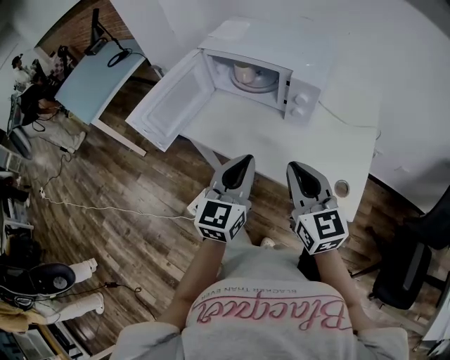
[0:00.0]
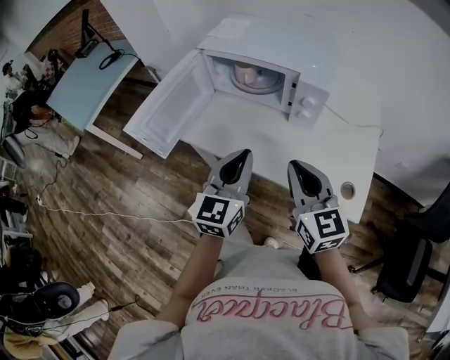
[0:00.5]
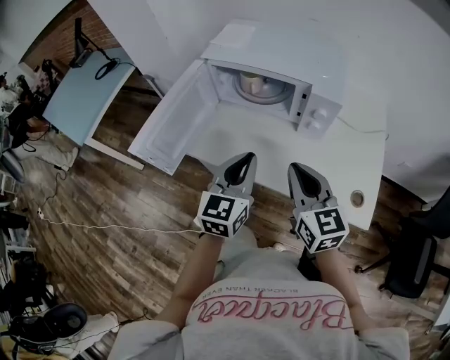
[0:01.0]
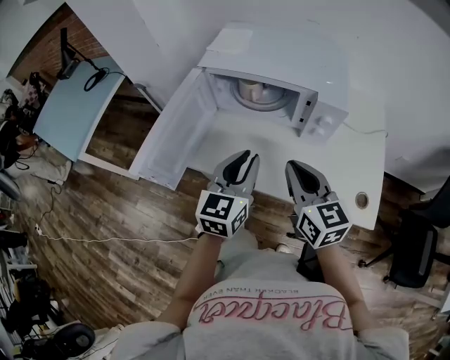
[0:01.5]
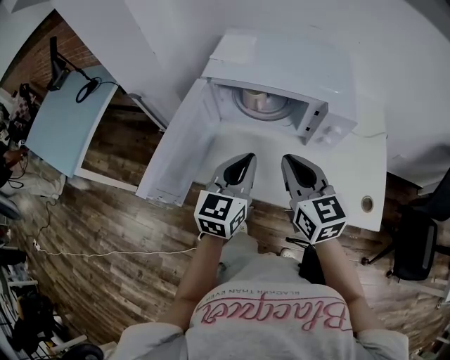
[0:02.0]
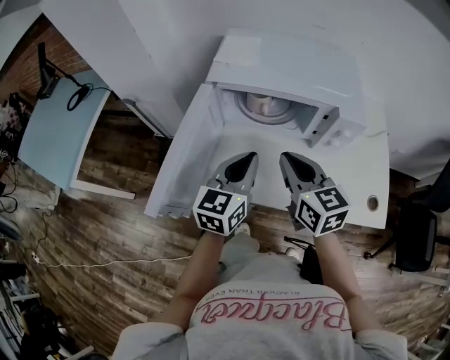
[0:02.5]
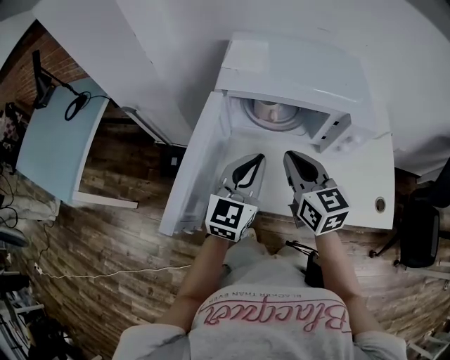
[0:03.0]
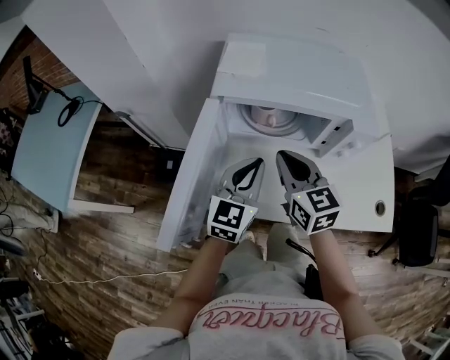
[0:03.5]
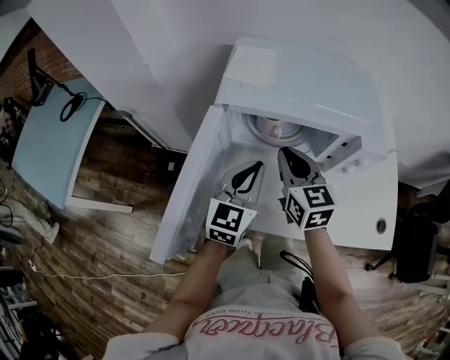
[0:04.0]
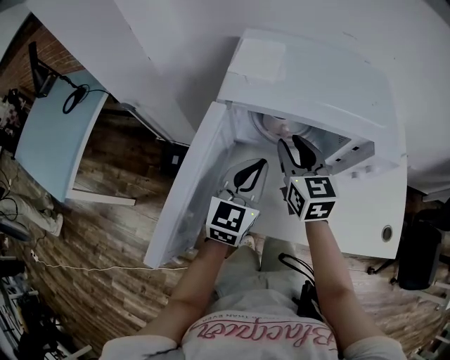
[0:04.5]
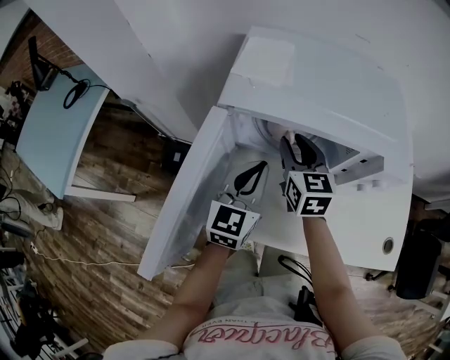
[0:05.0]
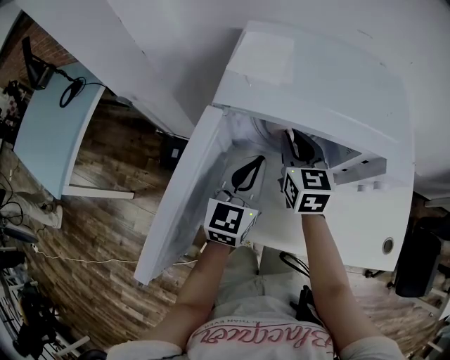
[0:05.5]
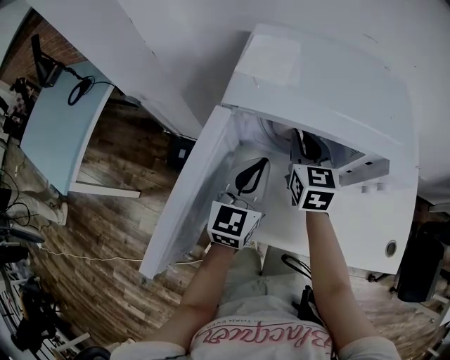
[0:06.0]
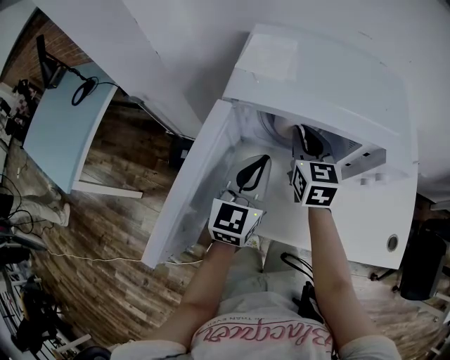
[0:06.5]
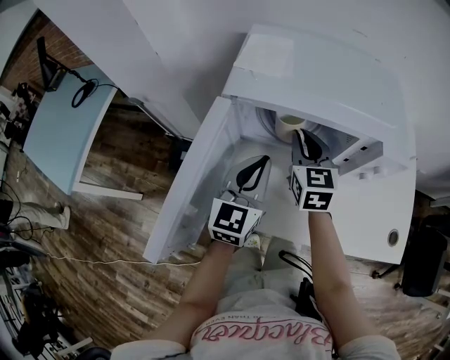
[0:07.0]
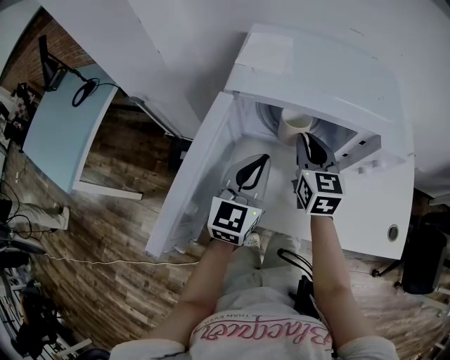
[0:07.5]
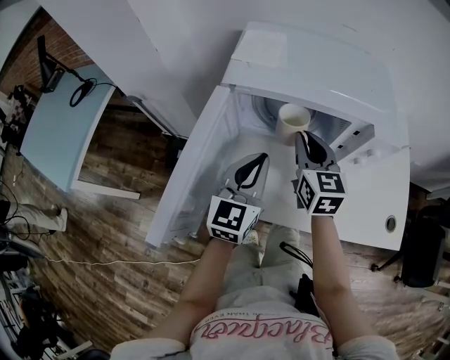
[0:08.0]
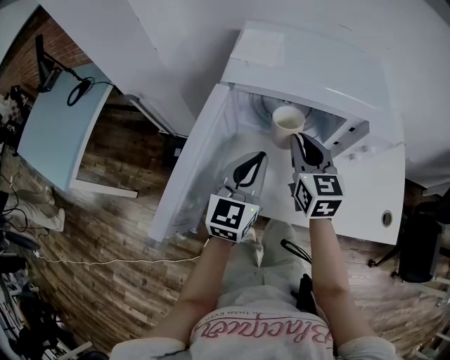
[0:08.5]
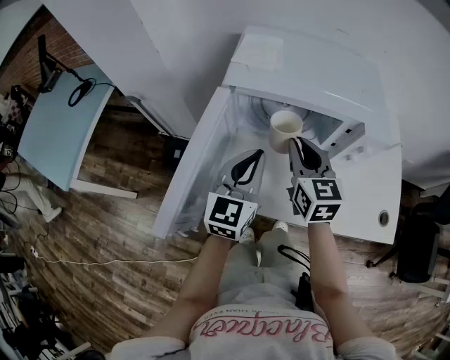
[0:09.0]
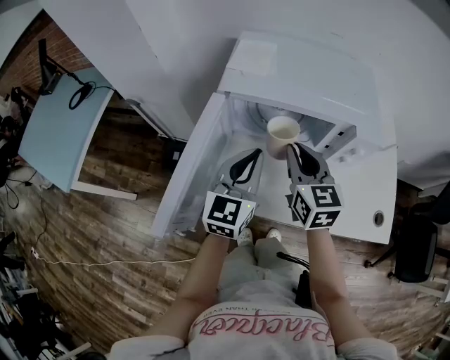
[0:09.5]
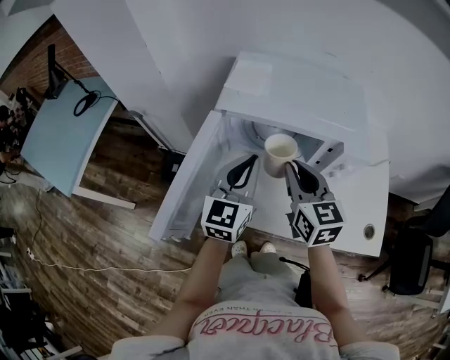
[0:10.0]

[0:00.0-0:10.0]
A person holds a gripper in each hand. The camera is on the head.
0:00.0 to 0:02.0: Both grippers travel together forward and to the left, approximately 20 cm.
0:02.0 to 0:04.0: The right gripper heads forward, to the left and downward, covering approximately 15 cm. The left gripper shifts roughly 10 cm forward.
0:04.0 to 0:06.0: The right gripper goes about 10 cm forward, while the left gripper moves roughly 5 cm.
0:06.0 to 0:08.0: Both grippers travel together backward, roughly 5 cm.
0:08.0 to 0:10.0: The right gripper moves upward and backward, roughly 10 cm. The left gripper goes some 10 cm upward.

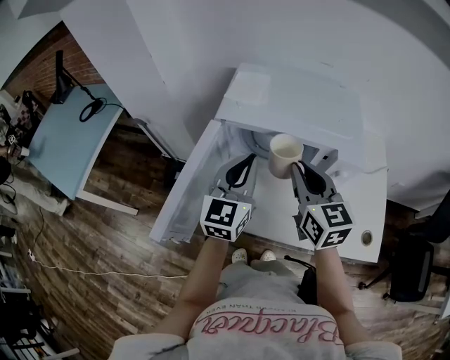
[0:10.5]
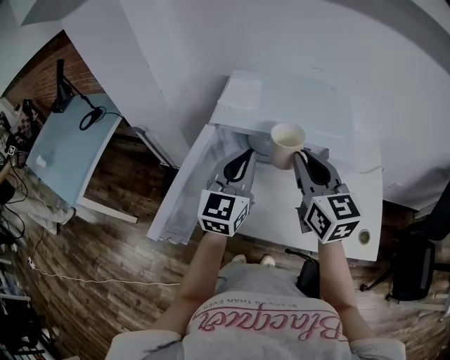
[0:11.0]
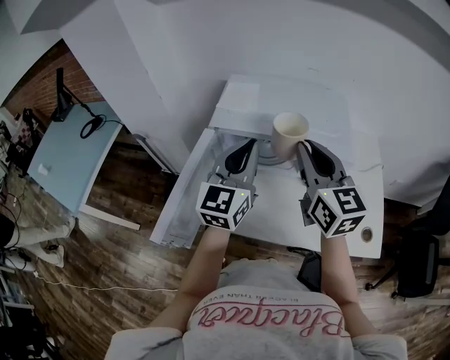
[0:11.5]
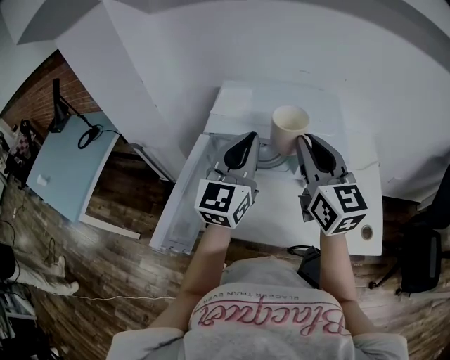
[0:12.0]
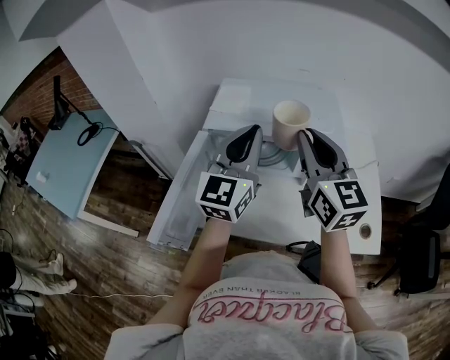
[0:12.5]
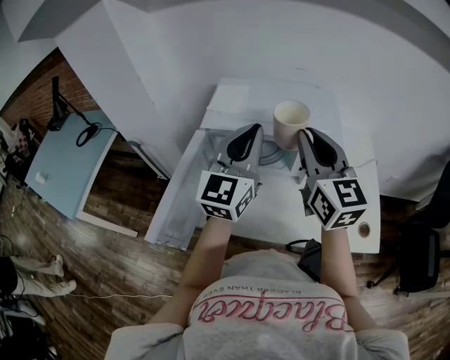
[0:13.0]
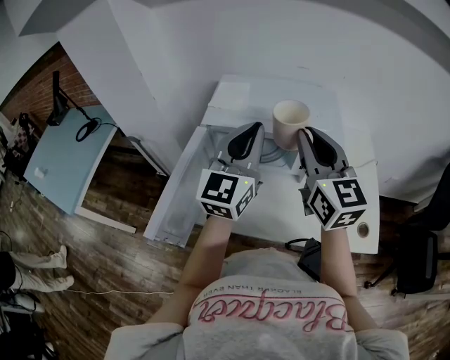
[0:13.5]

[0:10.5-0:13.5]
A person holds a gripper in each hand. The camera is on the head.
0:10.5 to 0:12.0: The two grippers go roughly 10 cm upward.
0:12.0 to 0:13.5: The grippers move only a little.

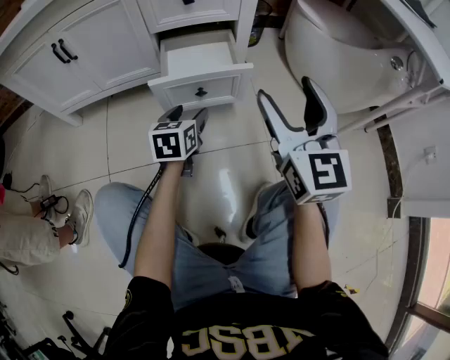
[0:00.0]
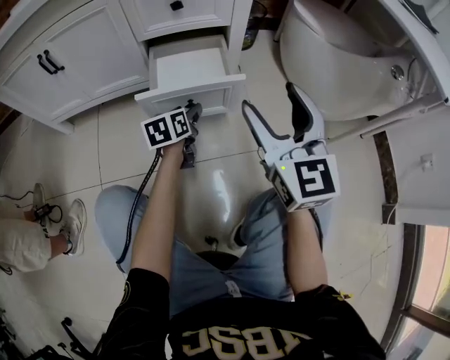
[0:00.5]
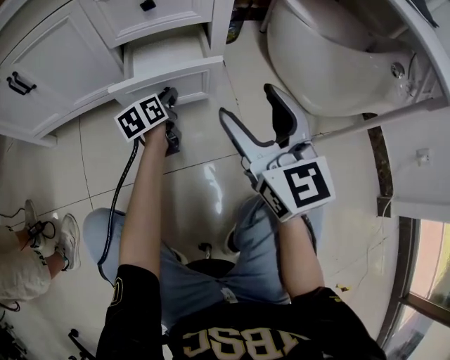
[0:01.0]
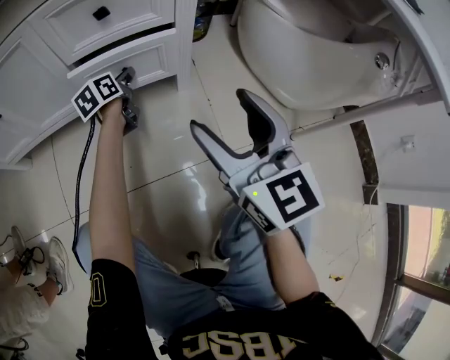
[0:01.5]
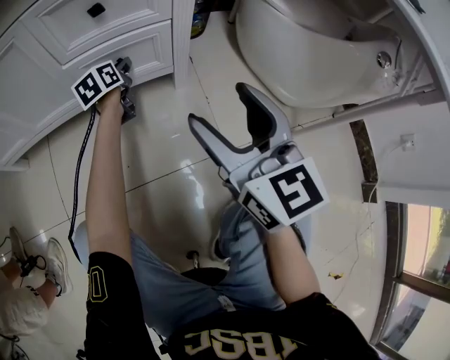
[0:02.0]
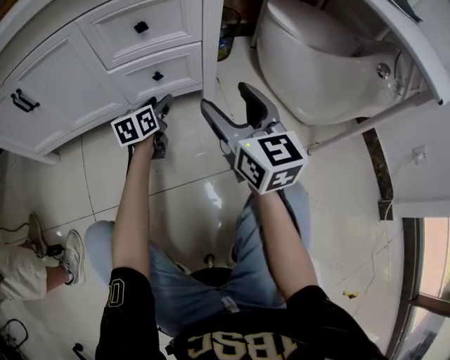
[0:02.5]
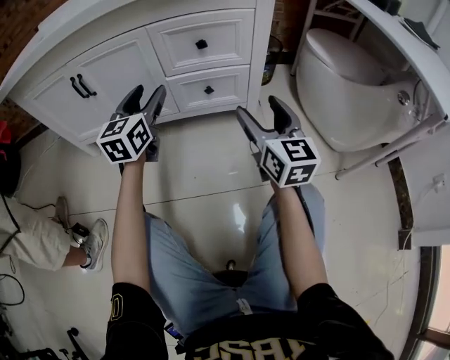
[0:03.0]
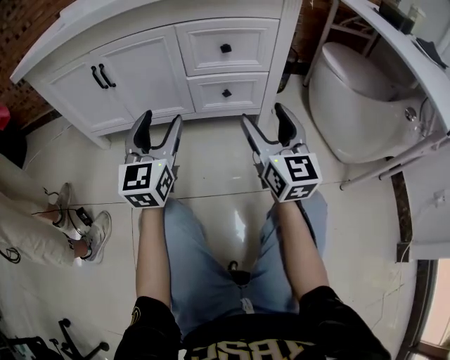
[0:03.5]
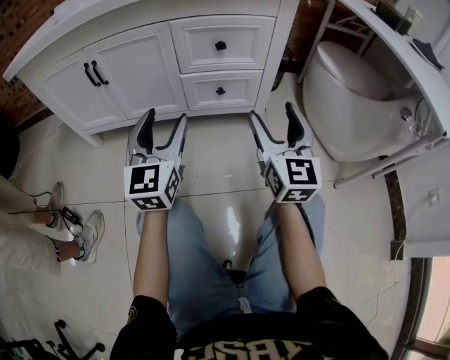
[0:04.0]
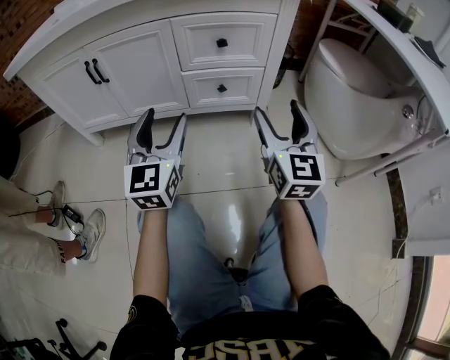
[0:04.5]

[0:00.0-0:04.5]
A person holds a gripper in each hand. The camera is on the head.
0:00.0 to 0:02.0: The right gripper heads forward and downward, covering some 10 cm. The left gripper shifts approximately 30 cm forward, swivels approximately 20 degrees, and closes.
0:02.0 to 0:04.5: The right gripper shifts about 5 cm to the left; the left gripper shifts roughly 40 cm backward, upward and to the left, changes its angle by some 50 degrees, and opens.
